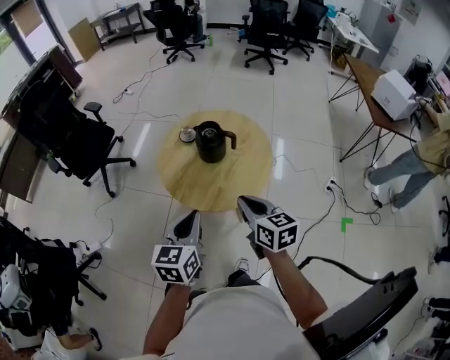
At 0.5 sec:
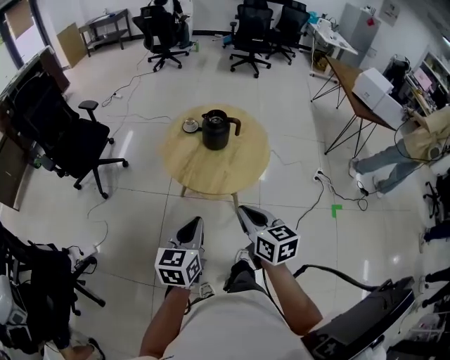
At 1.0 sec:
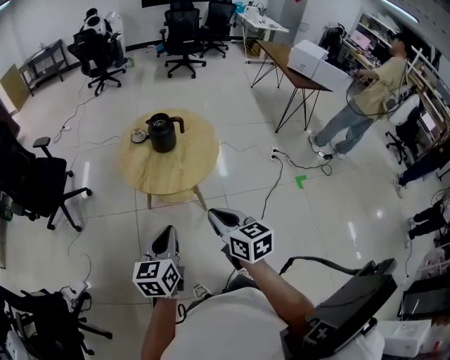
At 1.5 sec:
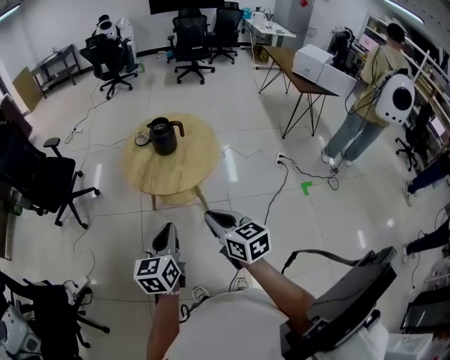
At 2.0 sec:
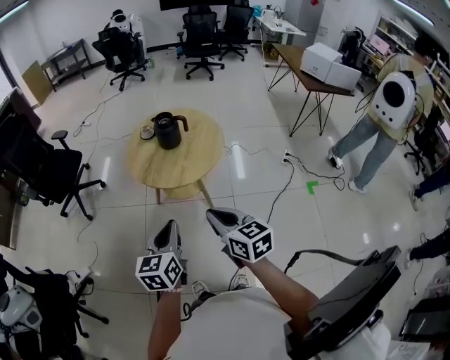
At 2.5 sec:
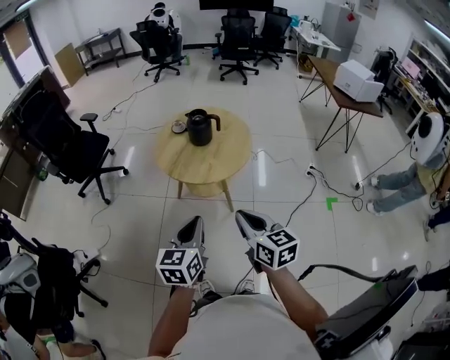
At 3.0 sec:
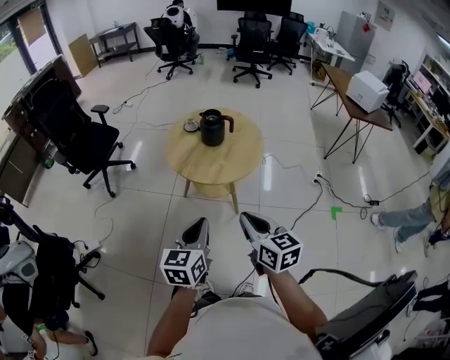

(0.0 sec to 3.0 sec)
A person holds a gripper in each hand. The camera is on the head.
0.0 sec - 1.5 sec: Both grippers move backward, approximately 20 cm.
1.5 sec - 3.0 sec: There are only small adjustments of the grippers.

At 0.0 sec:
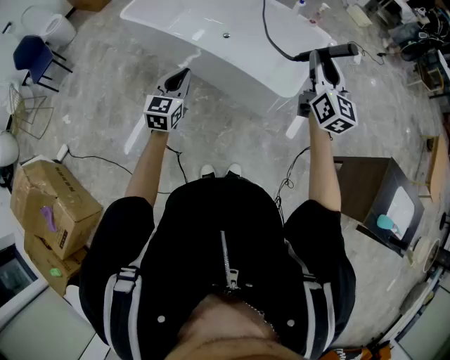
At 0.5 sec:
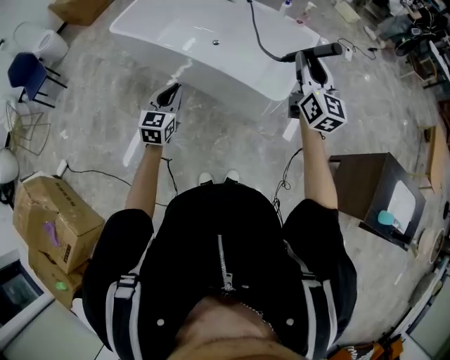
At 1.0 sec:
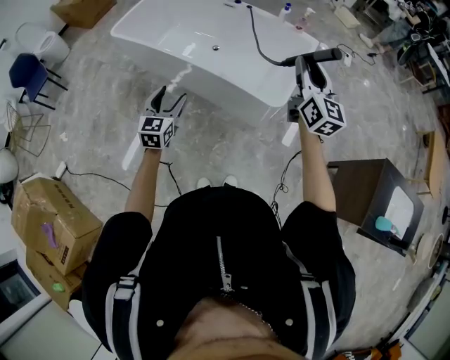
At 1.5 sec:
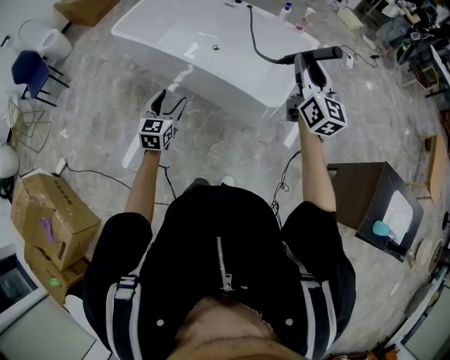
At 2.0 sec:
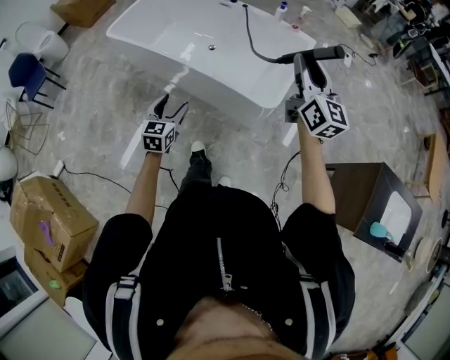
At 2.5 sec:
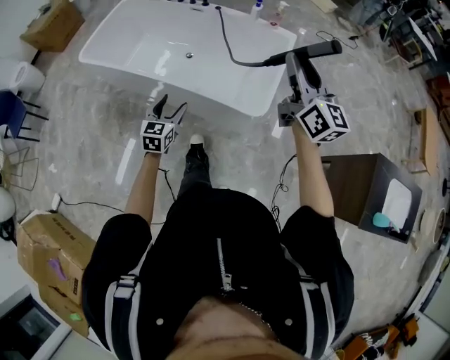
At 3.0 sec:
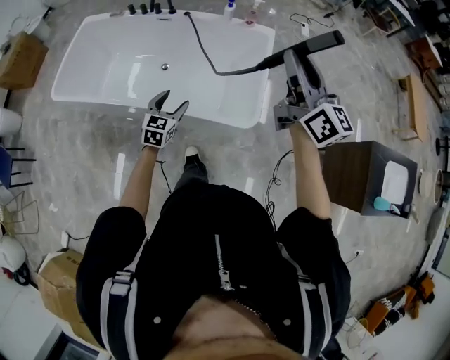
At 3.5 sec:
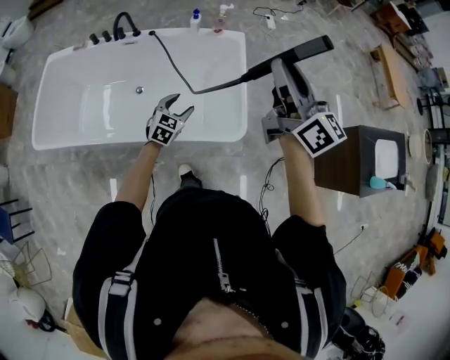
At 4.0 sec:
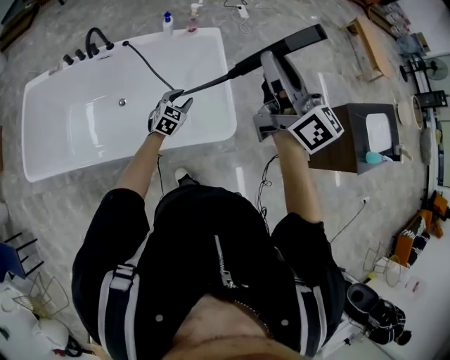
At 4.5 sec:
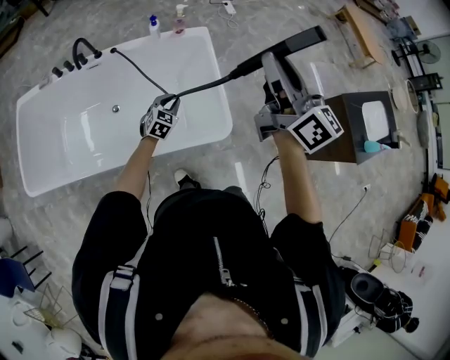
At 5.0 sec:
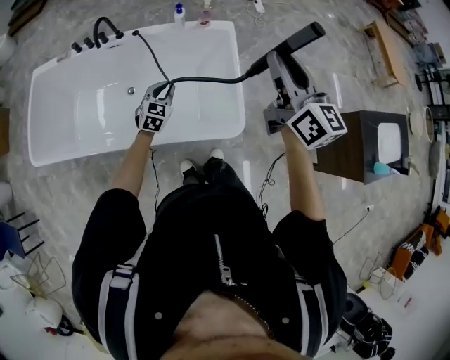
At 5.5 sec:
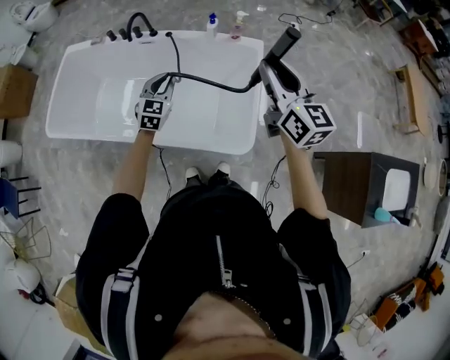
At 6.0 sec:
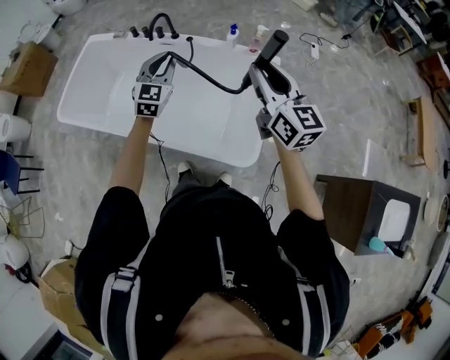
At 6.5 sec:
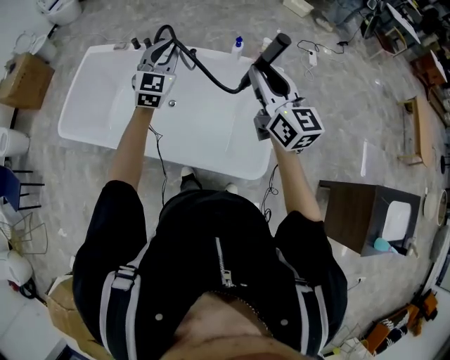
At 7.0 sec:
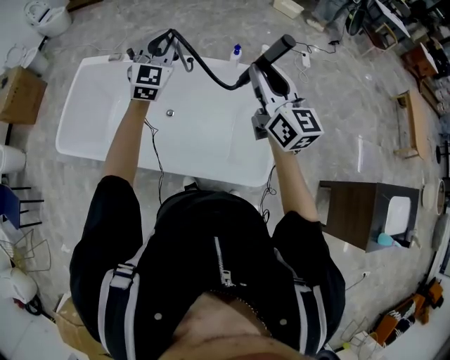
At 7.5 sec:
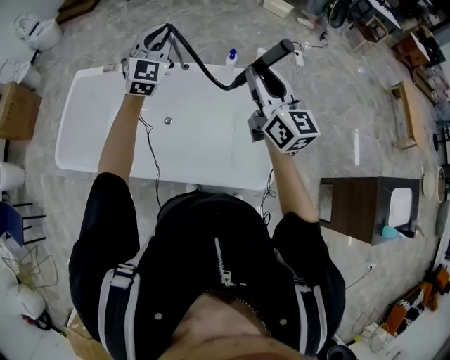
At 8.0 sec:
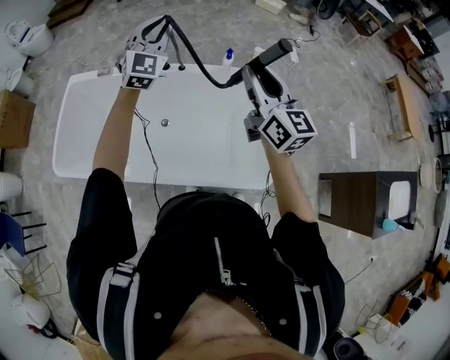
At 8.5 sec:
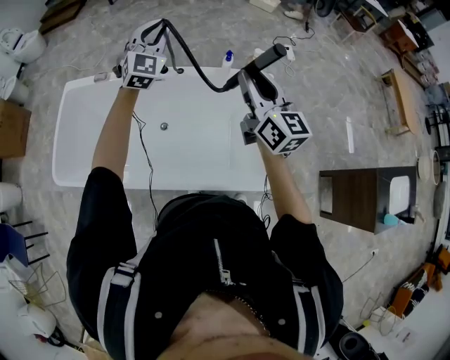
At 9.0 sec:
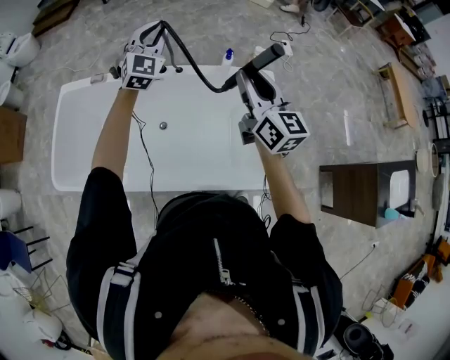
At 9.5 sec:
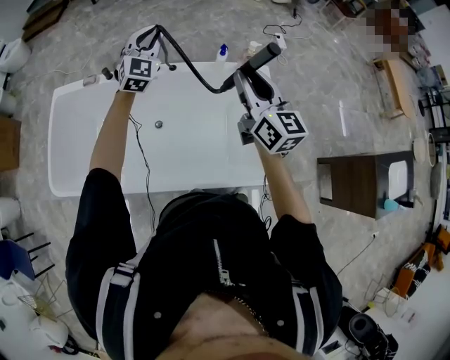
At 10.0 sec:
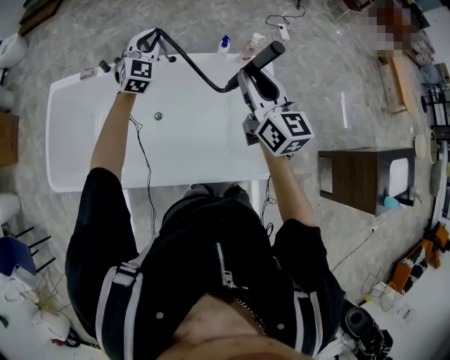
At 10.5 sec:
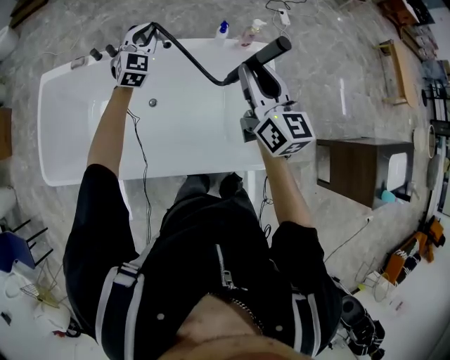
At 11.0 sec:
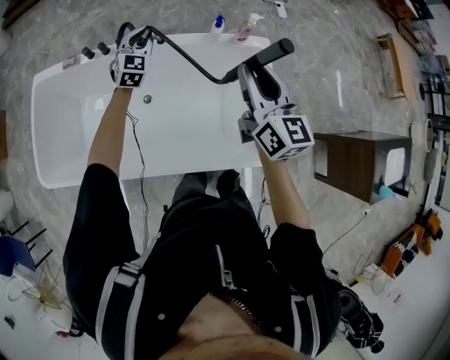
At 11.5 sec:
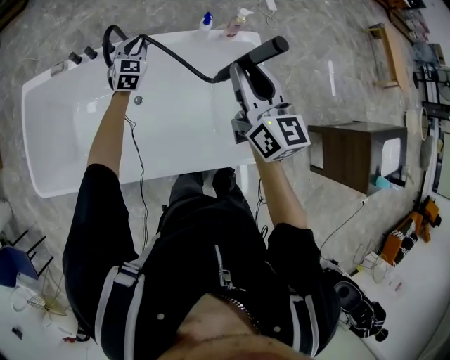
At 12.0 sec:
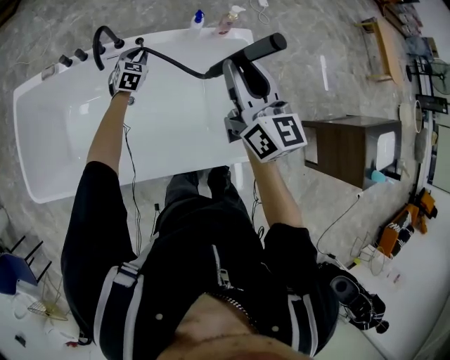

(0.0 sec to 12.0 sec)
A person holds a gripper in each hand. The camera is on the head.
0.0 sec - 2.0 sec: The left gripper moves downward, approximately 10 cm, and opens its fingers. Meanwhile the right gripper ends up roughly 5 cm from where it was.
2.0 sec - 4.0 sec: The left gripper shifts by some 50 cm, swivels approximately 60 degrees, and closes its fingers. The right gripper shifts by some 20 cm, and changes its angle by about 20 degrees.
4.0 sec - 6.0 sec: The right gripper moves roughly 15 cm, and rotates about 30 degrees. Meanwhile the left gripper travels upward by roughly 25 cm, swivels roughly 40 degrees, and closes its fingers.
6.0 sec - 8.0 sec: The left gripper goes approximately 25 cm forward and upward, and swivels some 30 degrees, while the right gripper heads to the left and forward, covering about 15 cm.
8.0 sec - 10.0 sec: The right gripper moves downward, roughly 5 cm, while the left gripper travels downward and forward by some 15 cm.
10.0 sec - 12.0 sec: The left gripper travels downward by approximately 25 cm, and rotates about 30 degrees.

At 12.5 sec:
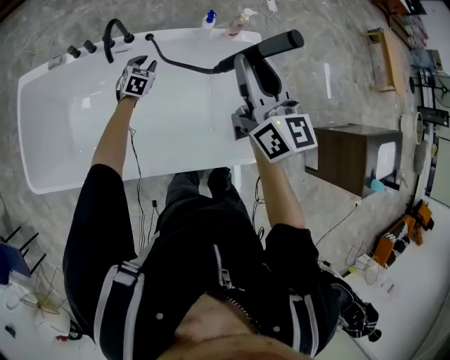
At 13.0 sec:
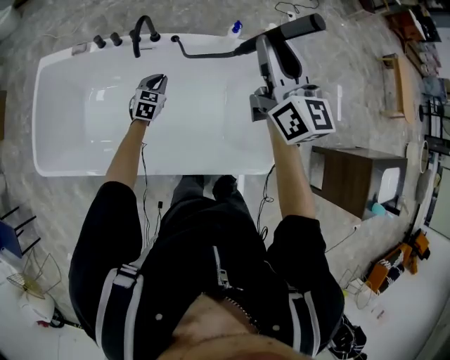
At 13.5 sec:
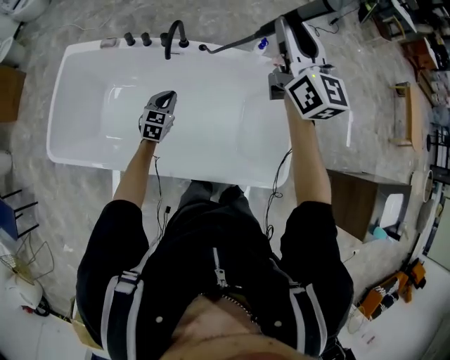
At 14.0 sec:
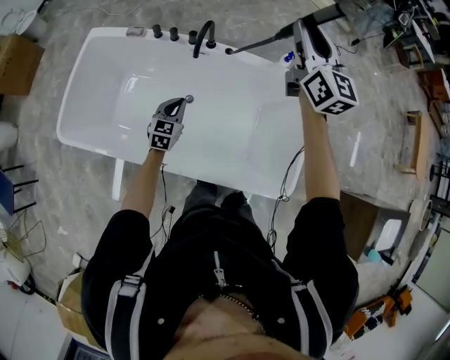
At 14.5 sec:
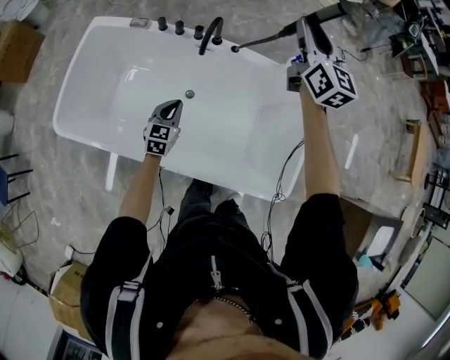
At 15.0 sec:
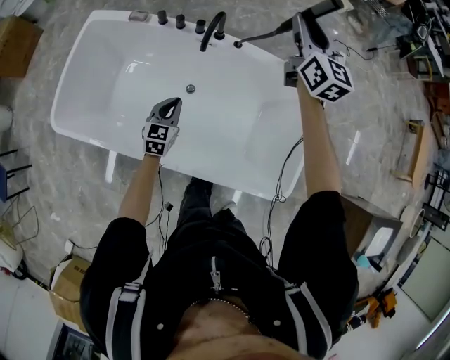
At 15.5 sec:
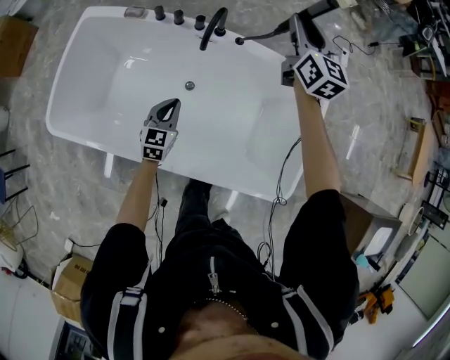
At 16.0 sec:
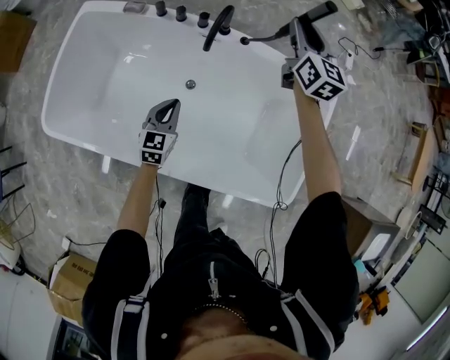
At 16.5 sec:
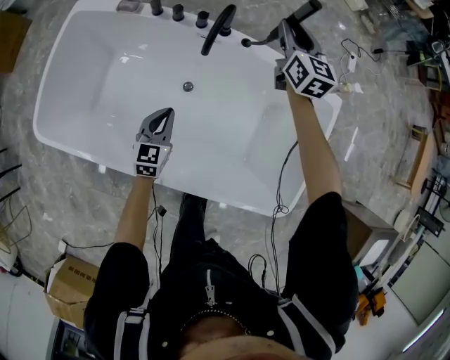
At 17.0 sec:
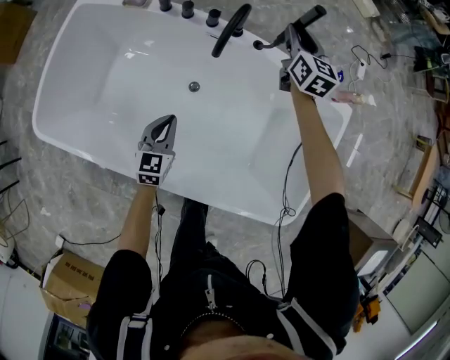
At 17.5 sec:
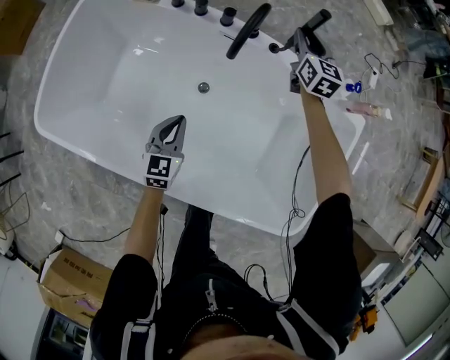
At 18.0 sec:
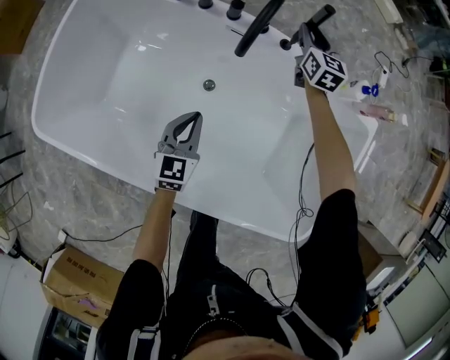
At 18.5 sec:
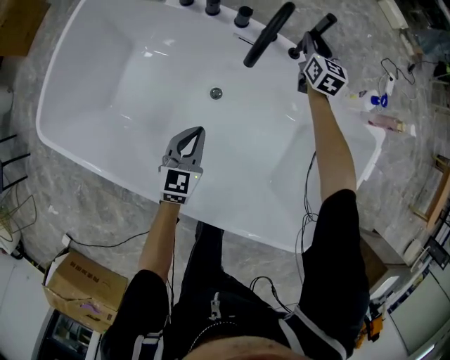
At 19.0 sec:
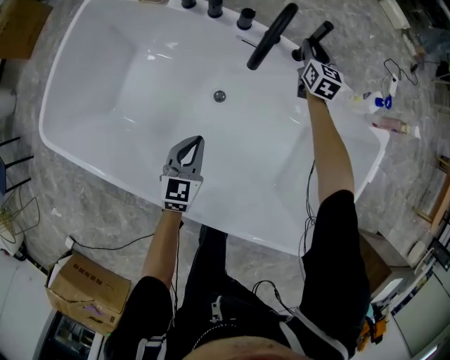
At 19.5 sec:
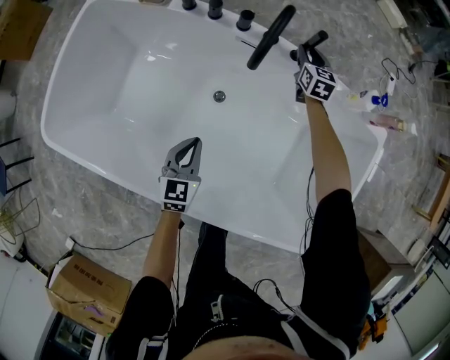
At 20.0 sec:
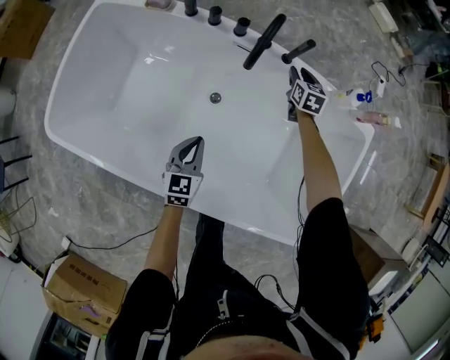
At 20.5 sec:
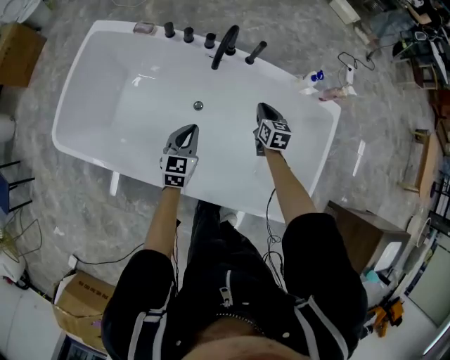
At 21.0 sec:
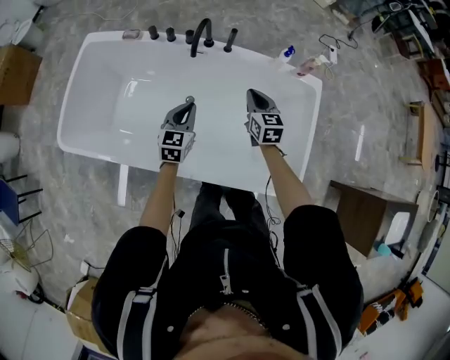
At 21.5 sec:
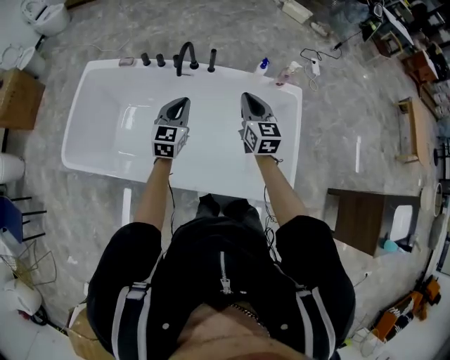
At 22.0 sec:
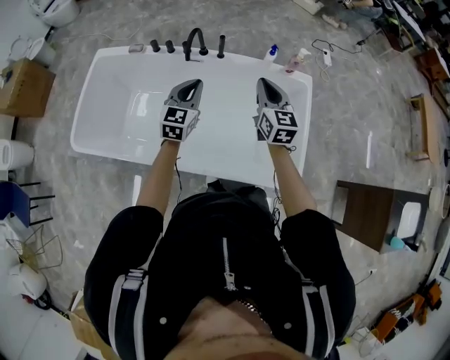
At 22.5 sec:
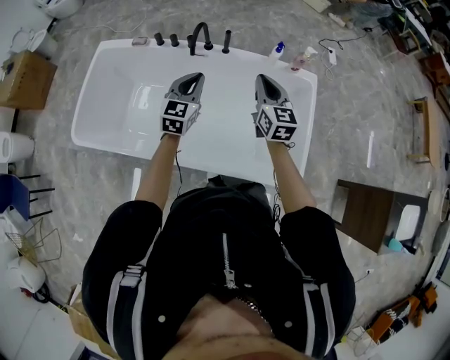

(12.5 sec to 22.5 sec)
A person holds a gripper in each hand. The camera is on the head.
12.5 sec - 14.5 sec: The right gripper is displaced forward and to the left by roughly 25 cm; the left gripper travels backward and to the left by about 25 cm, and rotates approximately 30 degrees.
14.5 sec - 16.5 sec: The left gripper heads downward, covering roughly 5 cm. Meanwhile the right gripper goes about 25 cm downward and forward.
16.5 sec - 18.5 sec: The left gripper moves downward, some 10 cm. Meanwhile the right gripper moves downward, about 25 cm.
18.5 sec - 20.5 sec: The right gripper travels backward by roughly 30 cm, and closes. The left gripper heads upward, covering roughly 10 cm.
20.5 sec - 22.5 sec: The left gripper goes roughly 25 cm upward and to the right. Meanwhile the right gripper is displaced upward and backward by some 30 cm, and turns by about 30 degrees.

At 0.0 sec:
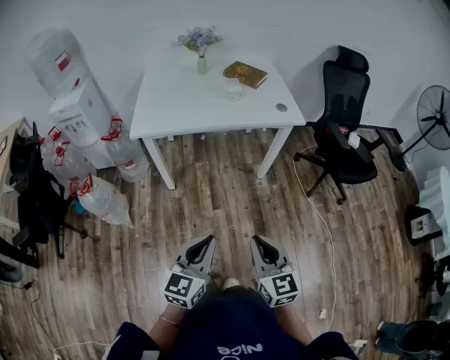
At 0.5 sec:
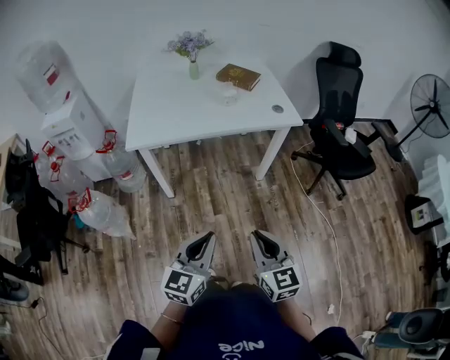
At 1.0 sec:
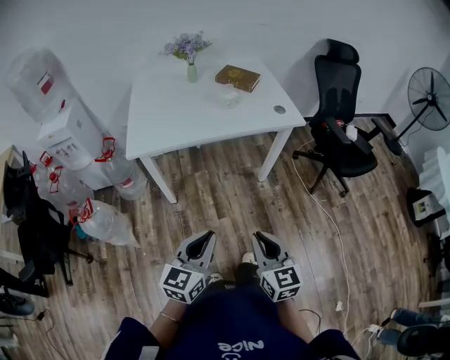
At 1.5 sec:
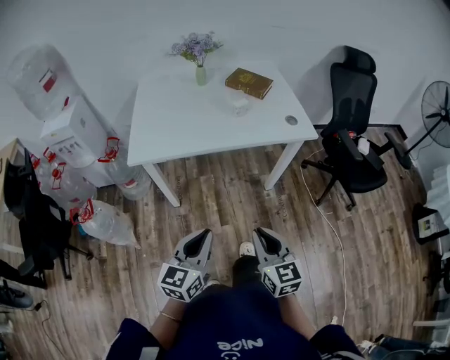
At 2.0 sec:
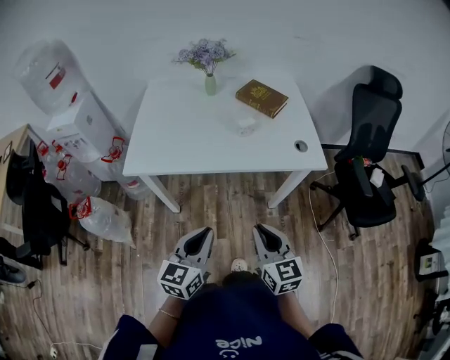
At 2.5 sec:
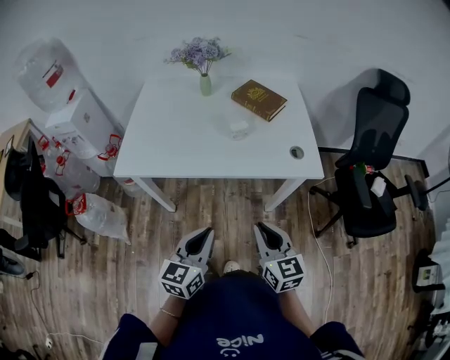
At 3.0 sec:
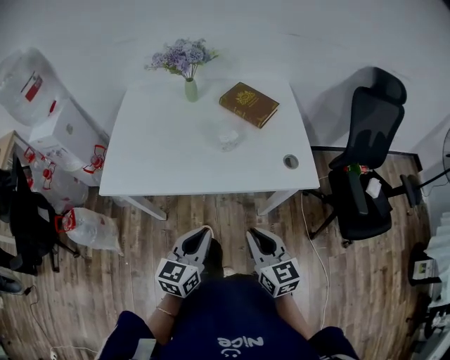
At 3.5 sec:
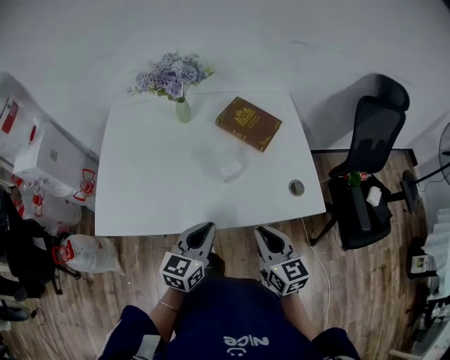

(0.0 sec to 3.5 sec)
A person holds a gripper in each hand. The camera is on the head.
0.0 sec - 2.0 sec: The grippers both shift forward by some 30 cm.
2.0 sec - 3.5 sec: The grippers both shift forward by some 30 cm.
